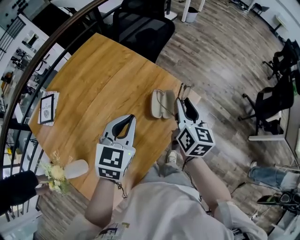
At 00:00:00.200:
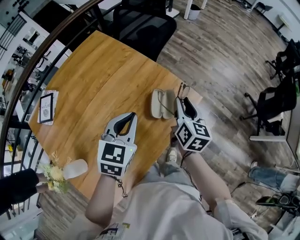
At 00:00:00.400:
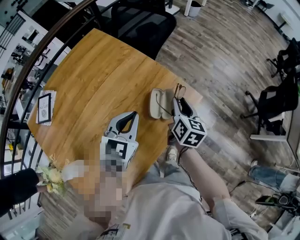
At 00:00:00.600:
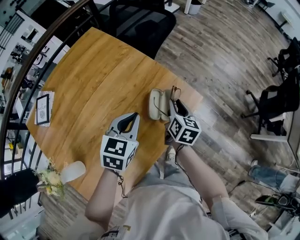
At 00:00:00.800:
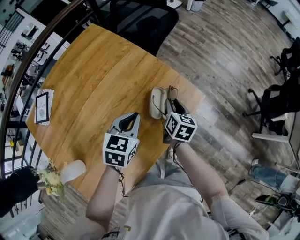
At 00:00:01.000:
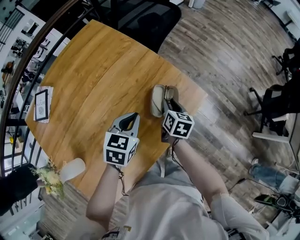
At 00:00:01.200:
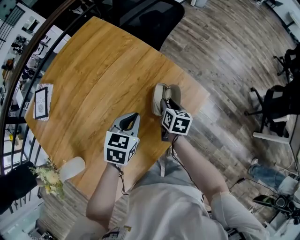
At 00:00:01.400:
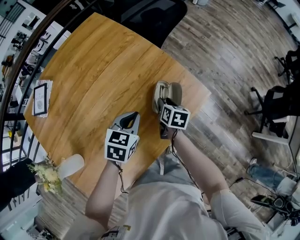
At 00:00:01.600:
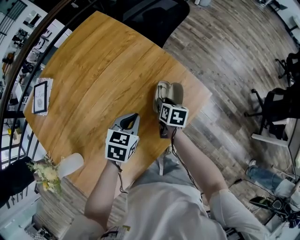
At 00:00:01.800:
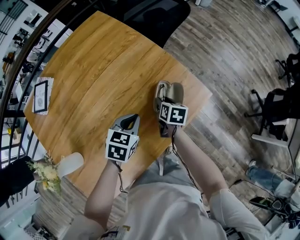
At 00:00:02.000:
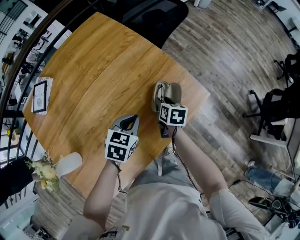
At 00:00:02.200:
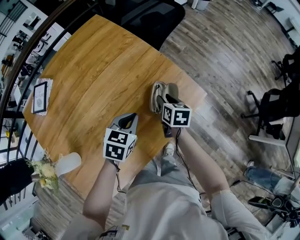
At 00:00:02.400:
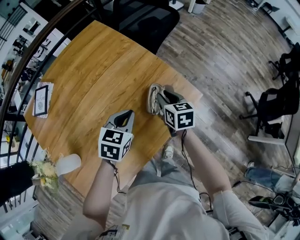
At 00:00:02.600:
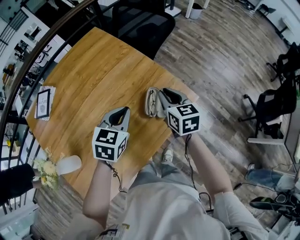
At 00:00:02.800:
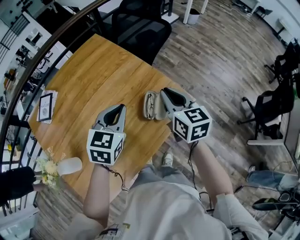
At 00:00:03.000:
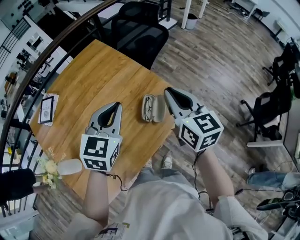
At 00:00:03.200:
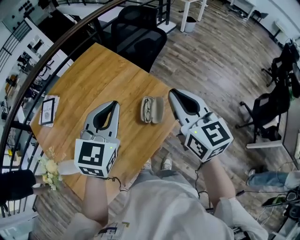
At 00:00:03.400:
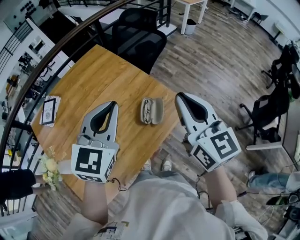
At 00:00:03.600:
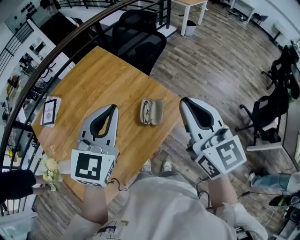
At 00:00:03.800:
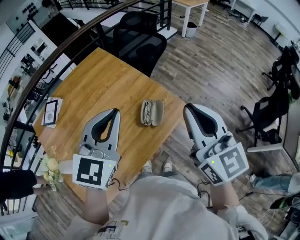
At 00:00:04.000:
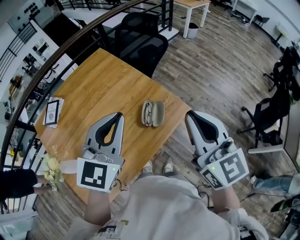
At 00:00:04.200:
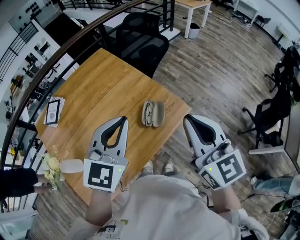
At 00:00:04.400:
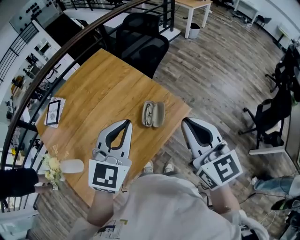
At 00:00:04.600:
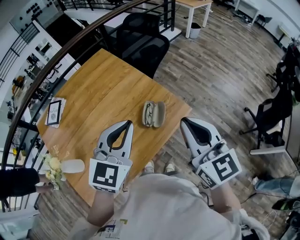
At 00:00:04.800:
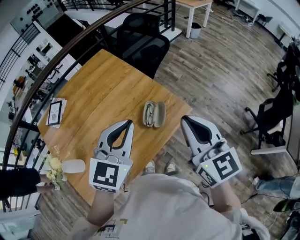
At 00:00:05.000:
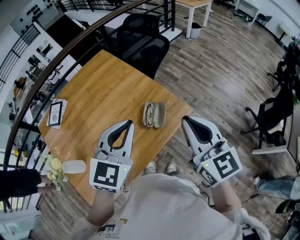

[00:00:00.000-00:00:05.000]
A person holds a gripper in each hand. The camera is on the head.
00:00:00.000 to 00:00:01.600: Both grippers move downward, about 25 cm. The left gripper rotates about 20 degrees, while the right gripper tips its fingers downward by some 30 degrees.
00:00:01.600 to 00:00:03.400: The two grippers go about 40 cm upward. The right gripper tilts its fingers some 40 degrees upward, and closes its fingers, while the left gripper tips its fingers upward by about 30 degrees.
00:00:03.400 to 00:00:05.000: The right gripper ends up some 5 cm from where it was; the left gripper moves to the right, roughly 5 cm.

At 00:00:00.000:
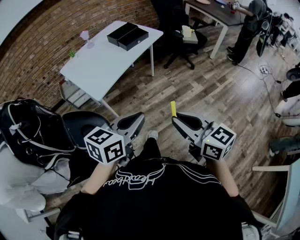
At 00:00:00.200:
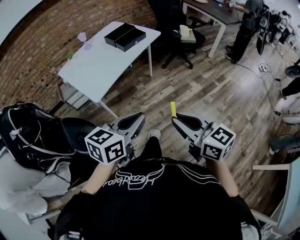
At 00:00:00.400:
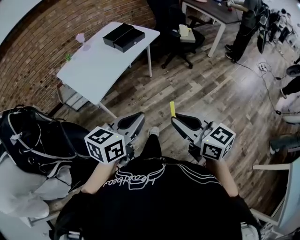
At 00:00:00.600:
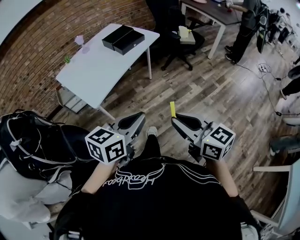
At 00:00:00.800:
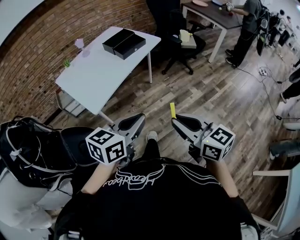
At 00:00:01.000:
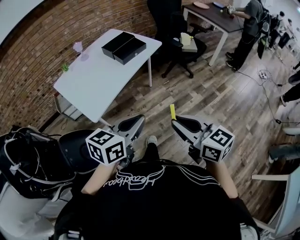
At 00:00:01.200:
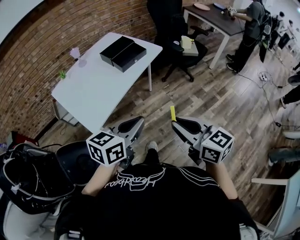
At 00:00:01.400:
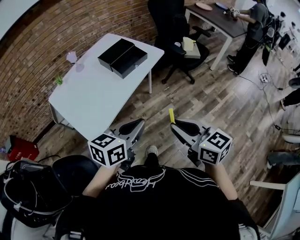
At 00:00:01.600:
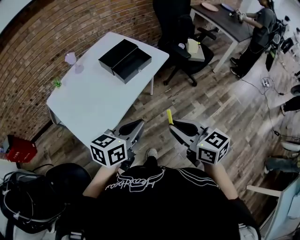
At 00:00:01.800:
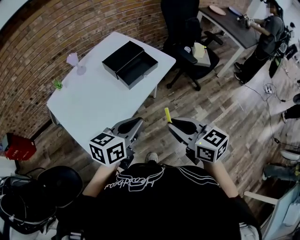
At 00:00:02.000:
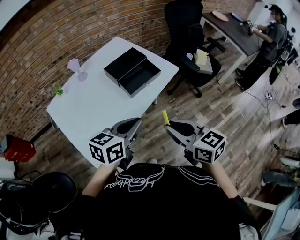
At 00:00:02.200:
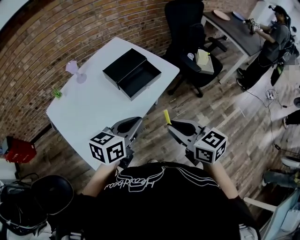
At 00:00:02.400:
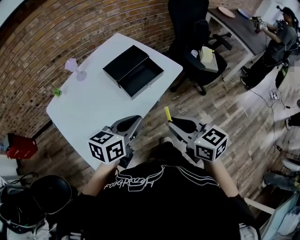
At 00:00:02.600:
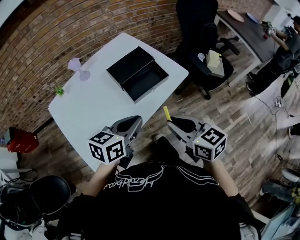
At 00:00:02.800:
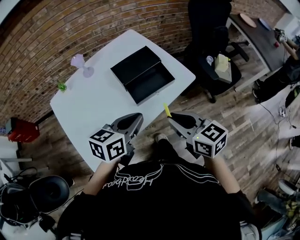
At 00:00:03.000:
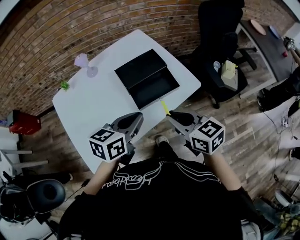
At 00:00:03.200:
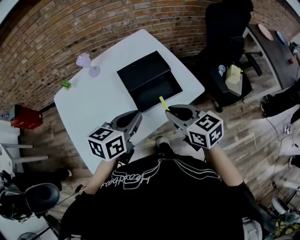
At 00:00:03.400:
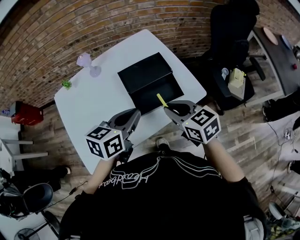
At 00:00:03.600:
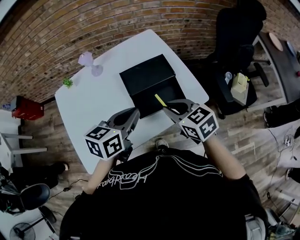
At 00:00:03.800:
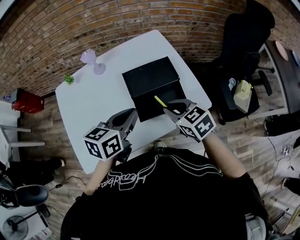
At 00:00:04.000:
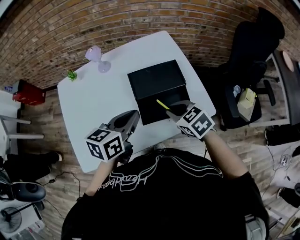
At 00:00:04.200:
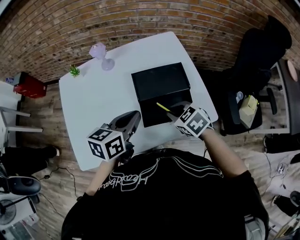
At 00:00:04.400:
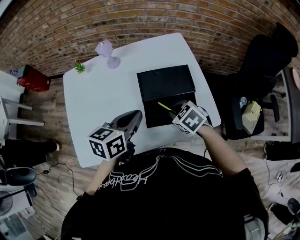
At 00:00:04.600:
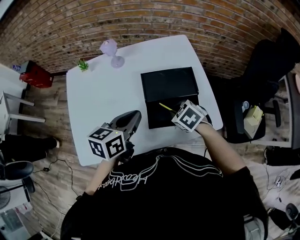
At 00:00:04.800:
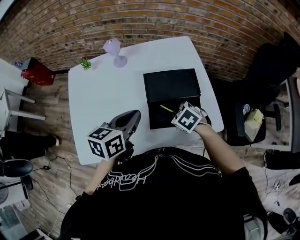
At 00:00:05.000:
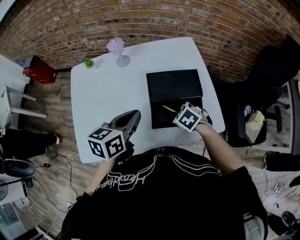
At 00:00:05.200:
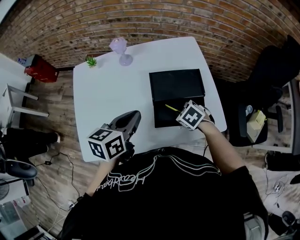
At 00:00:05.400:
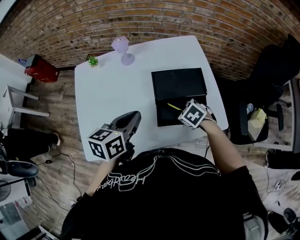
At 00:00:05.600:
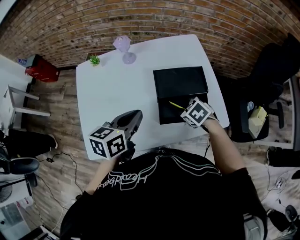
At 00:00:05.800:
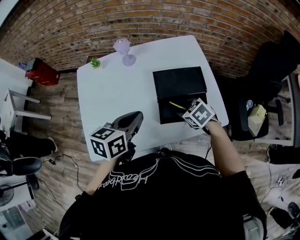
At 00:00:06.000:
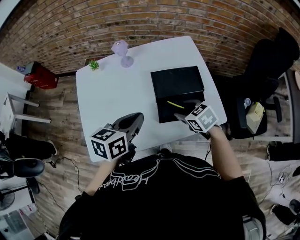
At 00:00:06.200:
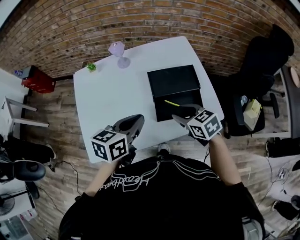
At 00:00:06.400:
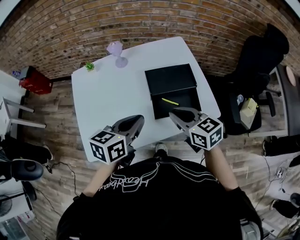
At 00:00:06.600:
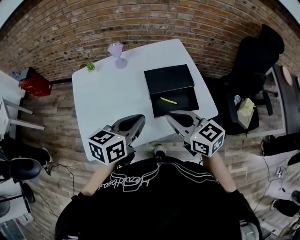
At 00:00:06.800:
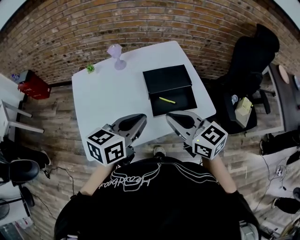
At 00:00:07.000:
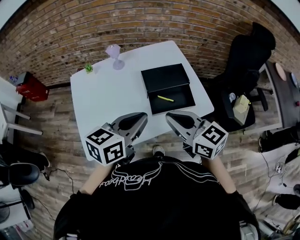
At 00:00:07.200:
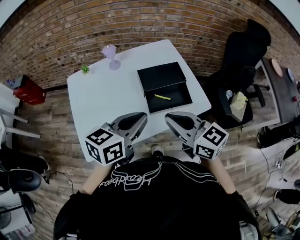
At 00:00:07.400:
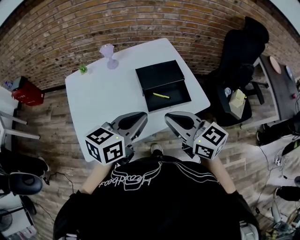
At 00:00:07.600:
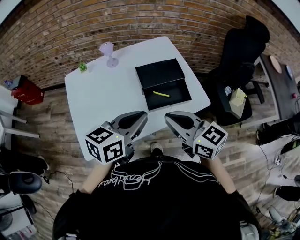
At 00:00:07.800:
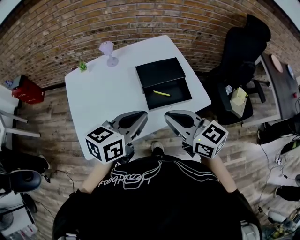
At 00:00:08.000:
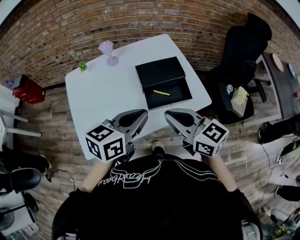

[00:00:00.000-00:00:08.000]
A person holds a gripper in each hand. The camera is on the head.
00:00:00.000 to 00:00:01.600: The grippers both shift forward by roughly 30 cm.
00:00:01.600 to 00:00:03.200: The grippers both shift forward by some 30 cm. The right gripper changes its angle by about 30 degrees. Meanwhile the left gripper rotates approximately 20 degrees.
00:00:03.200 to 00:00:04.800: The left gripper moves roughly 10 cm, and rotates about 20 degrees. Meanwhile the right gripper is displaced downward by about 20 cm, and points its fingers approximately 40 degrees further downward.
00:00:04.800 to 00:00:06.400: The right gripper travels upward by some 15 cm, points its fingers about 40 degrees further upward, and opens, then closes once more. Meanwhile the left gripper travels backward by about 5 cm.
00:00:06.400 to 00:00:08.000: The left gripper shifts roughly 5 cm upward, while the right gripper is displaced upward and backward by approximately 10 cm.

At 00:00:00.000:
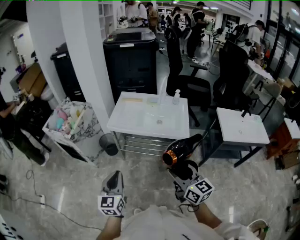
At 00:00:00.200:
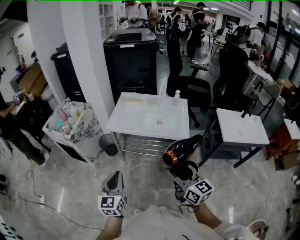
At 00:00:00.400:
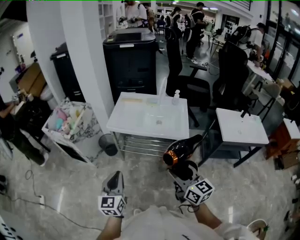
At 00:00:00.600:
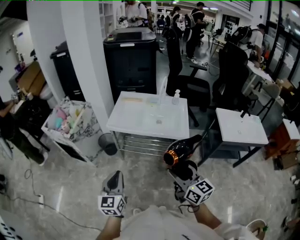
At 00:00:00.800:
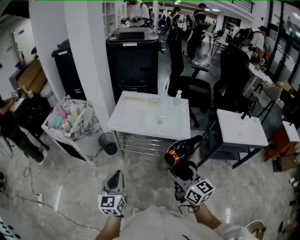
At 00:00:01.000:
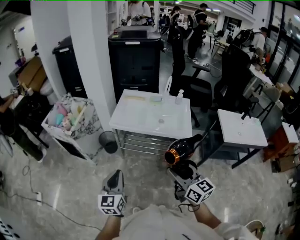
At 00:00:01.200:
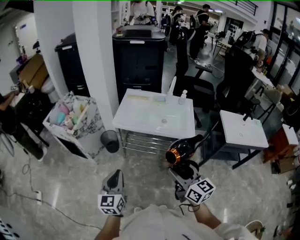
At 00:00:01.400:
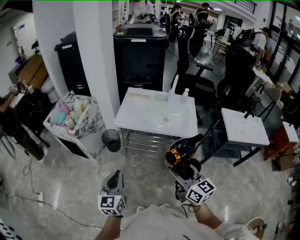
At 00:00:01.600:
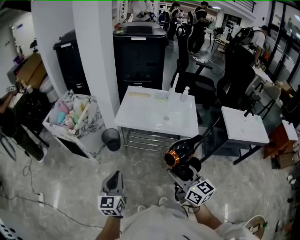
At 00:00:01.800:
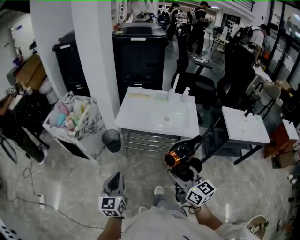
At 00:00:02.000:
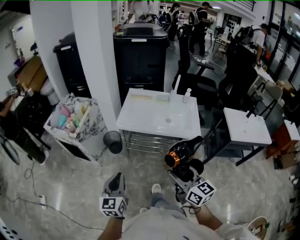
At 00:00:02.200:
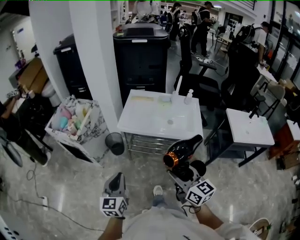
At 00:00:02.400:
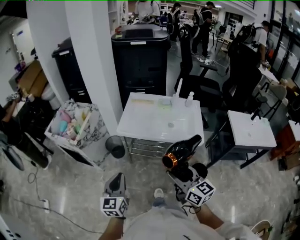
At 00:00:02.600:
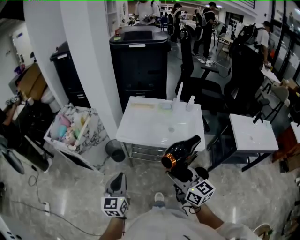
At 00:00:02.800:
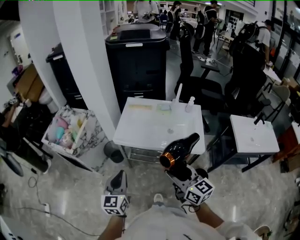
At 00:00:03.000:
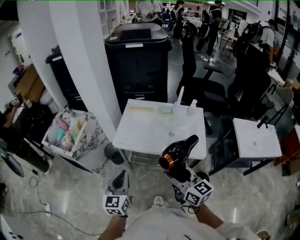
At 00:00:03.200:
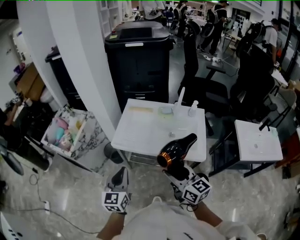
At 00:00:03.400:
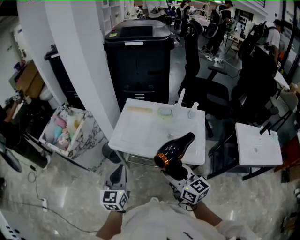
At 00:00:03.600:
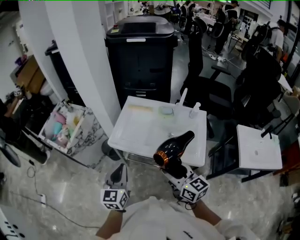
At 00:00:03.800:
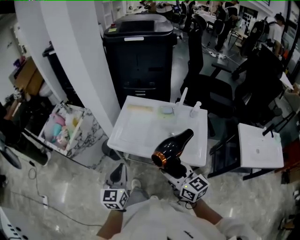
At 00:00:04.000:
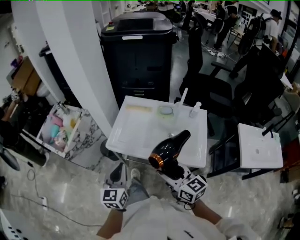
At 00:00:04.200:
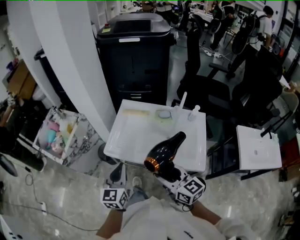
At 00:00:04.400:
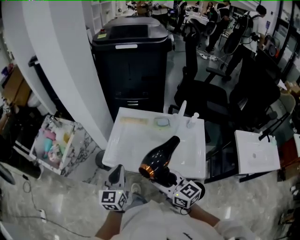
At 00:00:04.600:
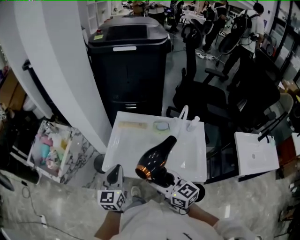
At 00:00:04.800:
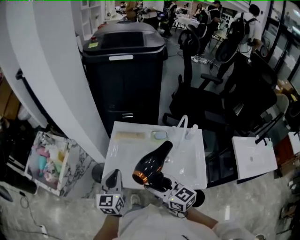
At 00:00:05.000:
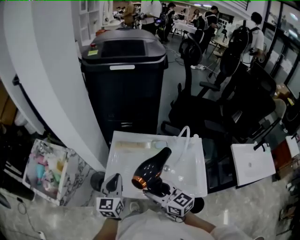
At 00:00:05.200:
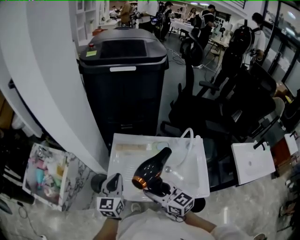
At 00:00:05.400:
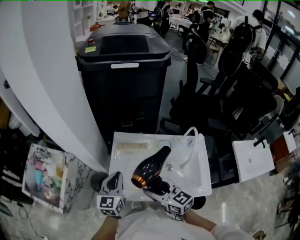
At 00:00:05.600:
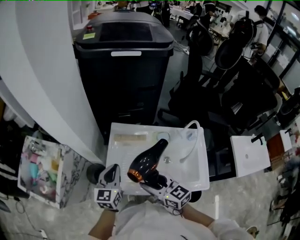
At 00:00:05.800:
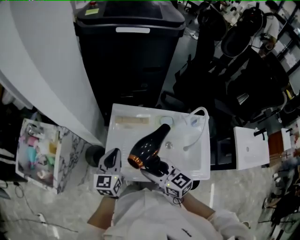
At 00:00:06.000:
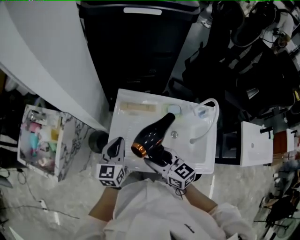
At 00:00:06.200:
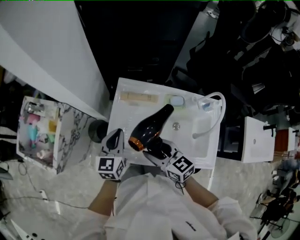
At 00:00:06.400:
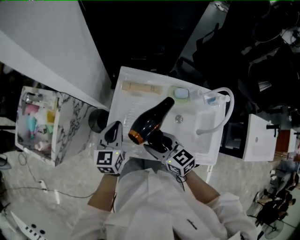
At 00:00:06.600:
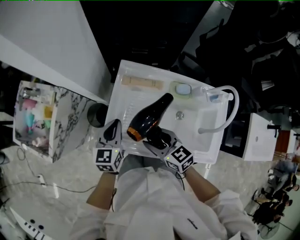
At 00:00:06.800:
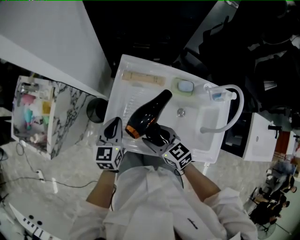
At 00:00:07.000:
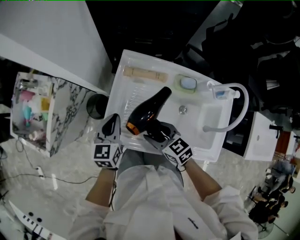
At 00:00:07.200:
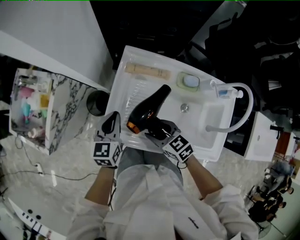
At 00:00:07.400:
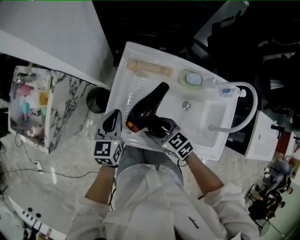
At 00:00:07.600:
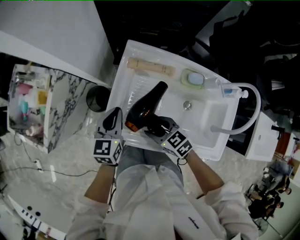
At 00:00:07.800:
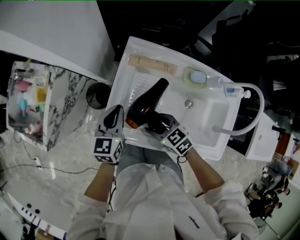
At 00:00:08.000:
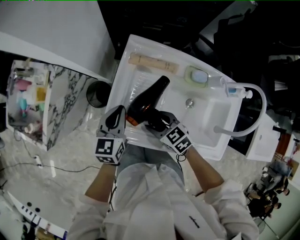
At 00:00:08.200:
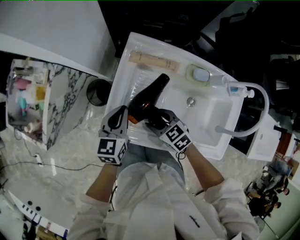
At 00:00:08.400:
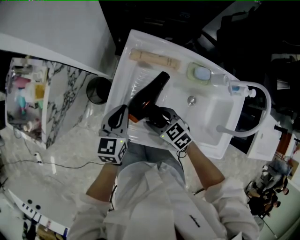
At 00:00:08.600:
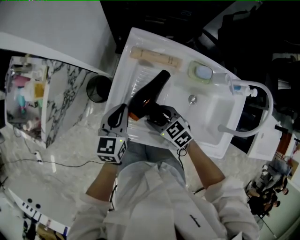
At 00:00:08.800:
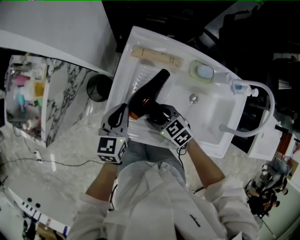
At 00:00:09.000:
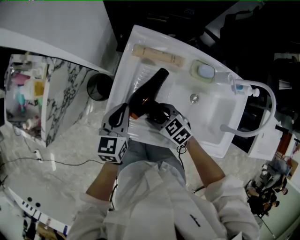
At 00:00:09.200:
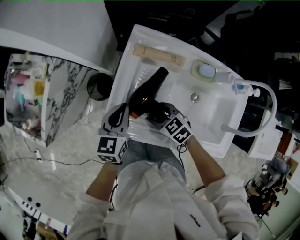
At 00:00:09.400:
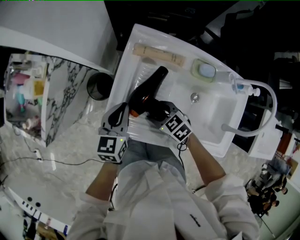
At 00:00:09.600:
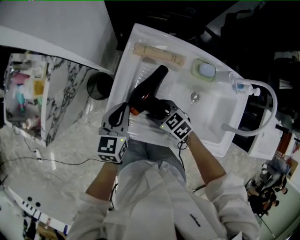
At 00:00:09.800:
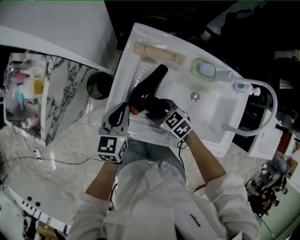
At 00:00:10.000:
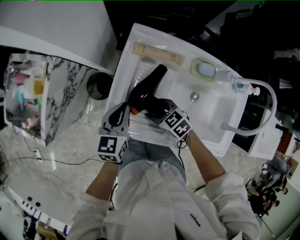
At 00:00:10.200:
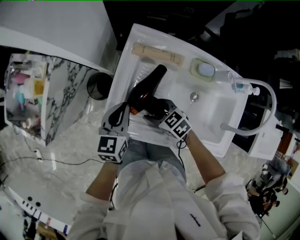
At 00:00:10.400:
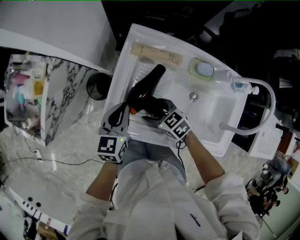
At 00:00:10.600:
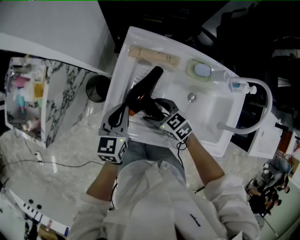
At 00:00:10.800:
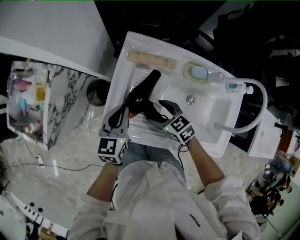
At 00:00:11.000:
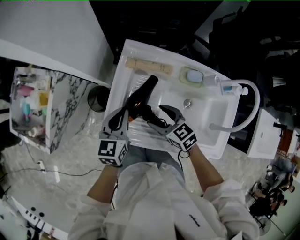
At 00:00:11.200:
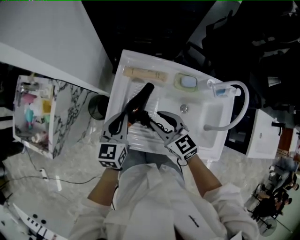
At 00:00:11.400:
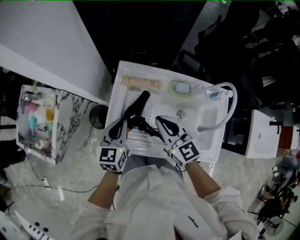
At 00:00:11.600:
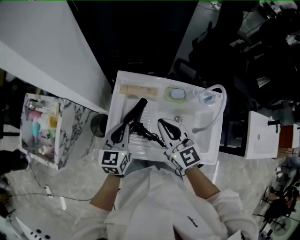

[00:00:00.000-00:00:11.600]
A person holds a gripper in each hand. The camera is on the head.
00:00:00.000 to 00:00:01.400: Both grippers travel together to the left, about 10 cm.
00:00:01.400 to 00:00:02.800: Both grippers travel together forward, about 15 cm.
00:00:02.800 to 00:00:04.400: The right gripper heads forward, covering some 20 cm. Meanwhile the left gripper goes some 25 cm forward and to the right.
00:00:04.400 to 00:00:05.800: The grippers both shift forward by about 20 cm.
00:00:05.800 to 00:00:07.200: Both grippers move downward, roughly 15 cm. The right gripper turns by about 30 degrees.
00:00:07.200 to 00:00:08.800: The right gripper heads downward, covering about 10 cm.
00:00:08.800 to 00:00:10.200: There are only small adjustments of the grippers.
00:00:10.200 to 00:00:11.600: The right gripper heads upward, covering some 30 cm, tips its fingers upward by some 40 degrees, and closes, while the left gripper is displaced upward by roughly 10 cm.
